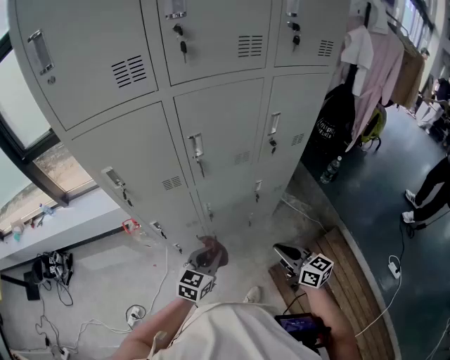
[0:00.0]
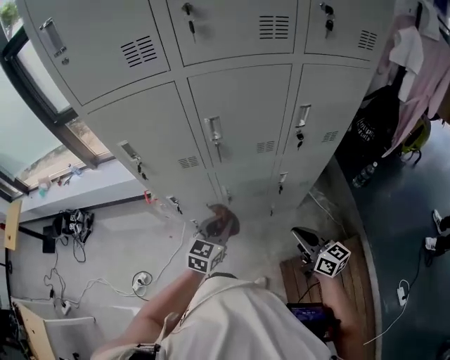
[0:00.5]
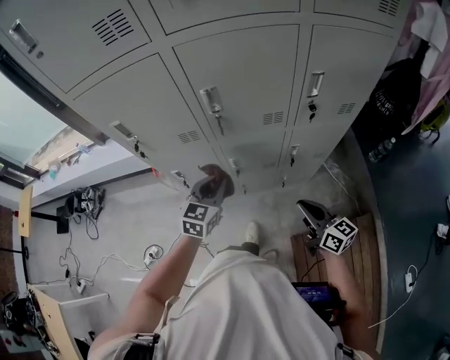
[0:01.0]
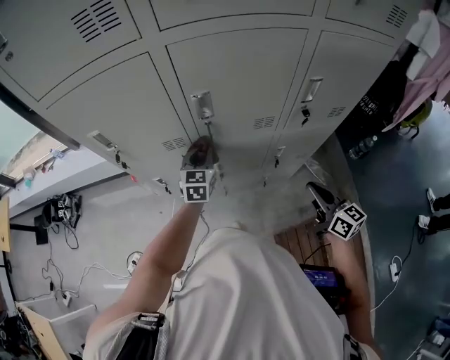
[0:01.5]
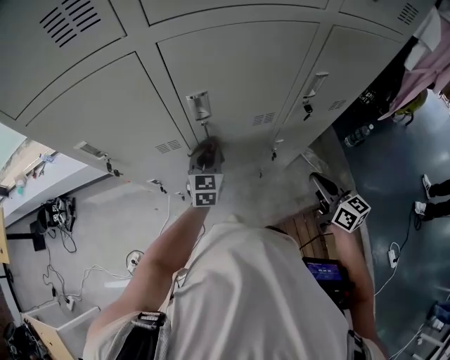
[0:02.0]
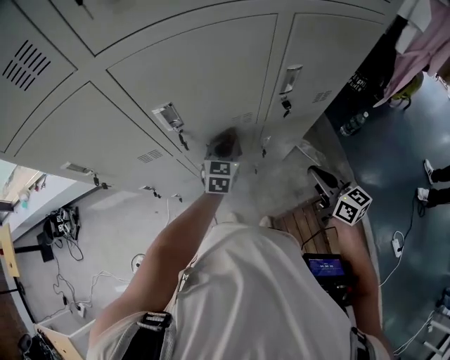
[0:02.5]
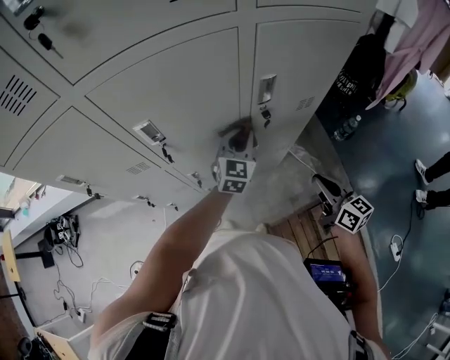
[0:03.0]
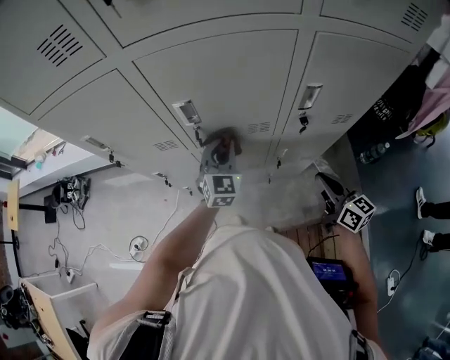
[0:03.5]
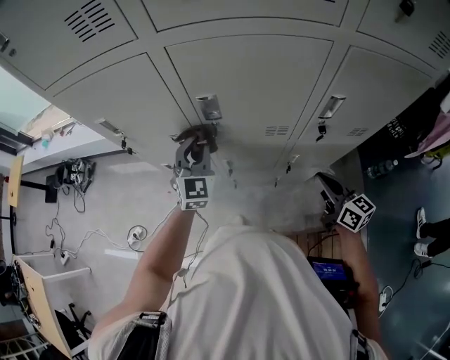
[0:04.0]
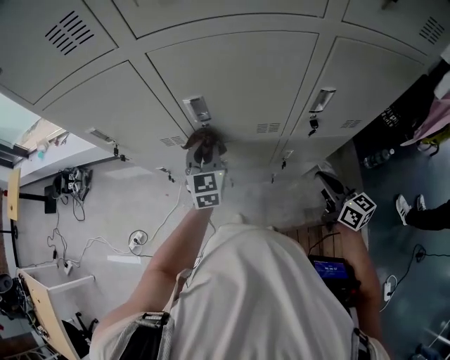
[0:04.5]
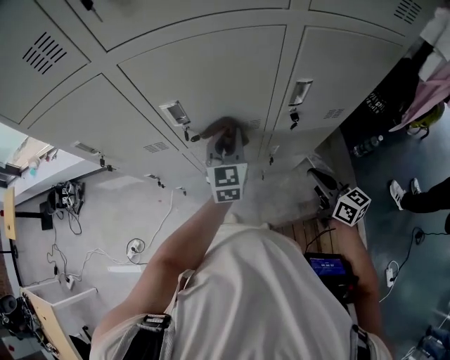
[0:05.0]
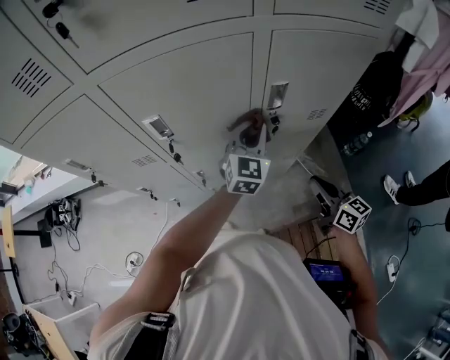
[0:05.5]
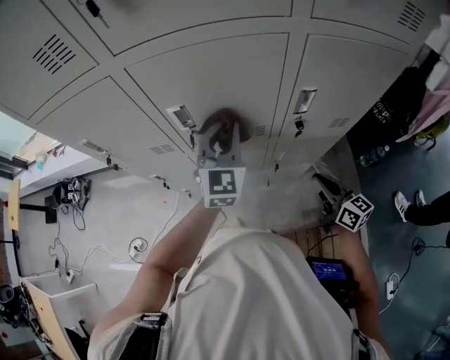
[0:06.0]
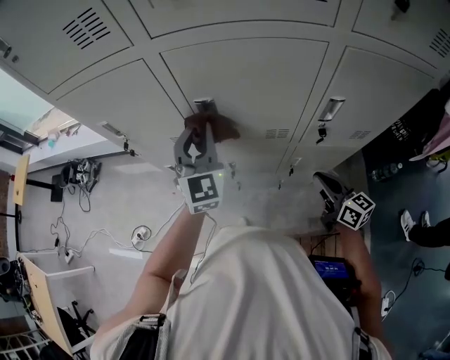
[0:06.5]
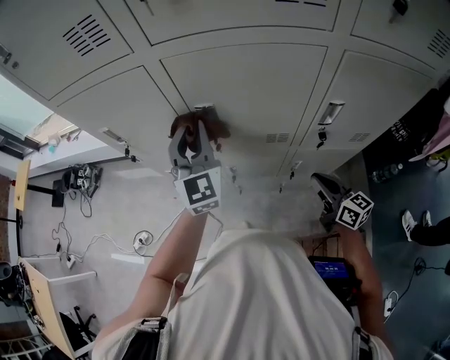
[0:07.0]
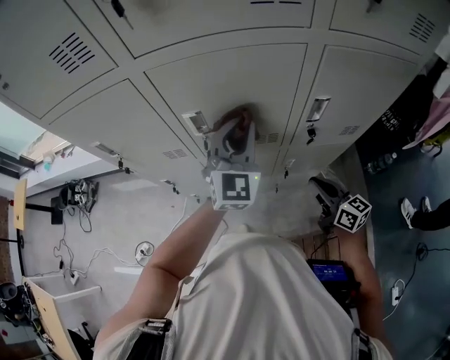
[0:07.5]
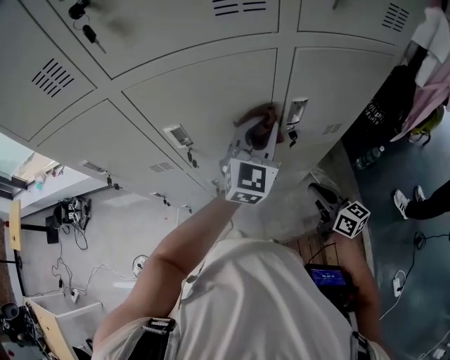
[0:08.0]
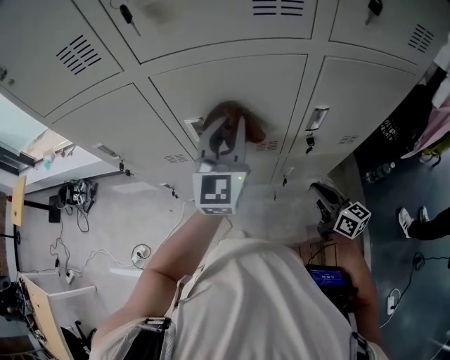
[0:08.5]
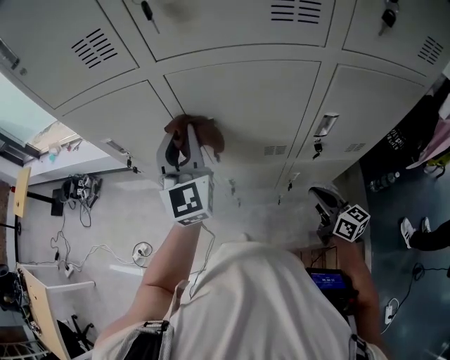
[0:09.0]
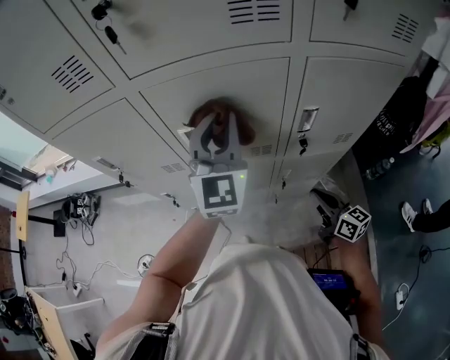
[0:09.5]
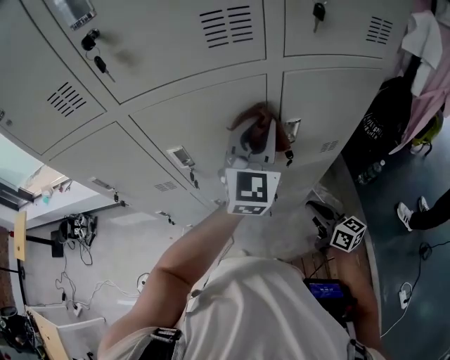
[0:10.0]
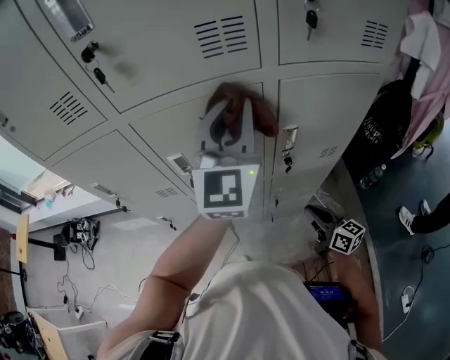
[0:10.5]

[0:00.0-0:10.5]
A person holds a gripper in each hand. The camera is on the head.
0:00.0 to 0:02.0: The left gripper heads forward, covering approximately 25 cm, and changes its angle by roughly 20 degrees. The right gripper goes roughly 20 cm forward and to the right.
0:02.0 to 0:04.0: The left gripper heads upward, covering about 10 cm, and rotates some 30 degrees.
0:04.0 to 0:06.5: The right gripper reaches about 5 cm backward, then returns; the left gripper shifts approximately 10 cm upward, and moves some 30 cm to the right and comes back.
0:06.5 to 0:08.5: The left gripper turns by approximately 20 degrees.
0:08.5 to 0:10.5: The left gripper goes left and right, about 25 cm each way, reversing 2 times.

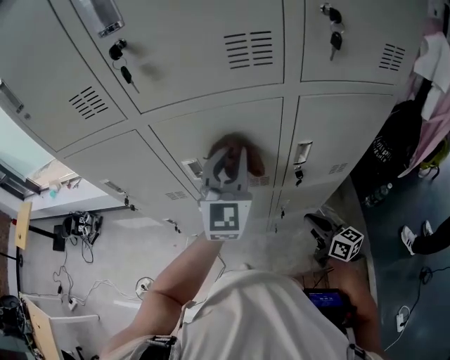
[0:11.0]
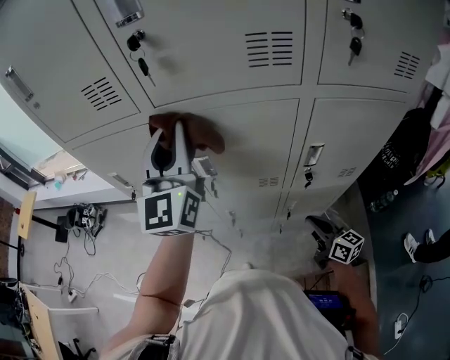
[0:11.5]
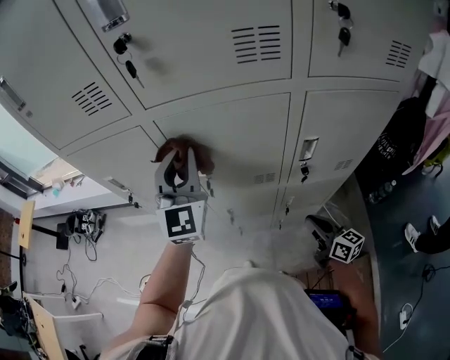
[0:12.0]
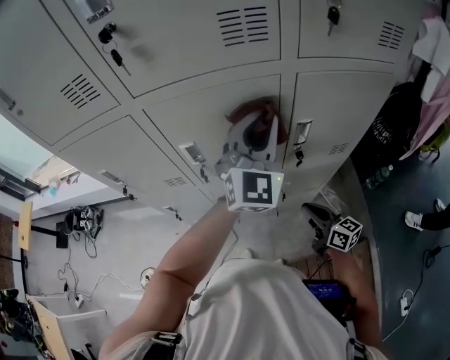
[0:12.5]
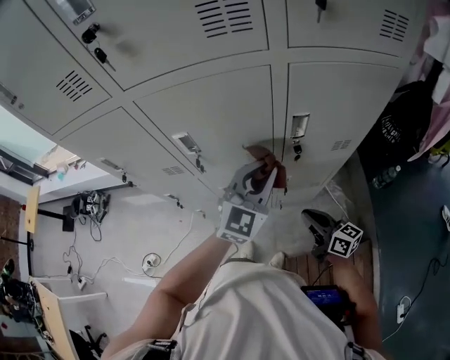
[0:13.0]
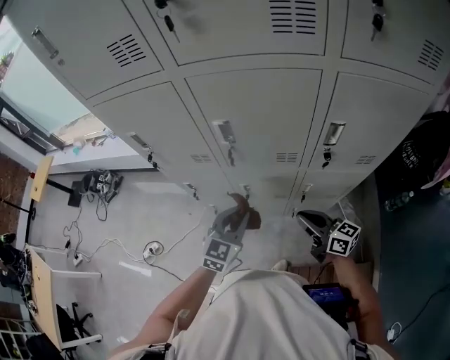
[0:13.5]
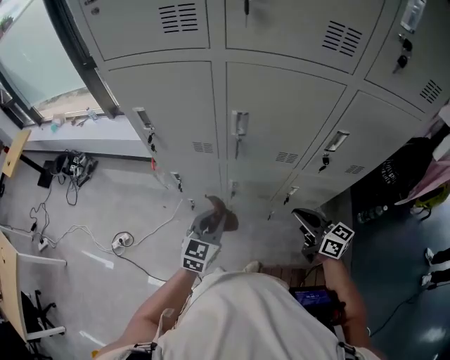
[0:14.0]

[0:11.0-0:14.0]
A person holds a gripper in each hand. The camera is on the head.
0:11.0 to 0:12.5: The left gripper reaches roughly 15 cm to the left, then returns.
0:12.5 to 0:14.0: The right gripper shifts roughly 10 cm to the left, while the left gripper moves downward, to the left and backward, roughly 40 cm, and rotates approximately 40 degrees.

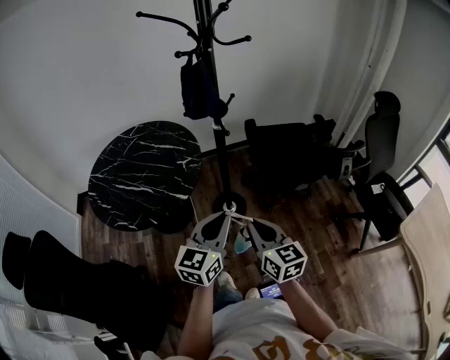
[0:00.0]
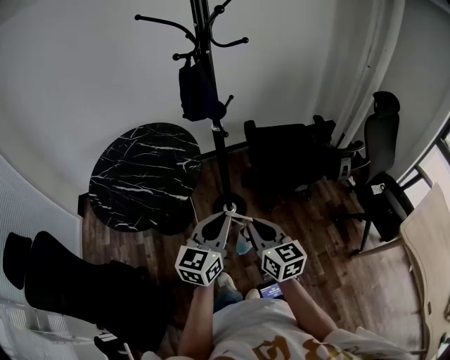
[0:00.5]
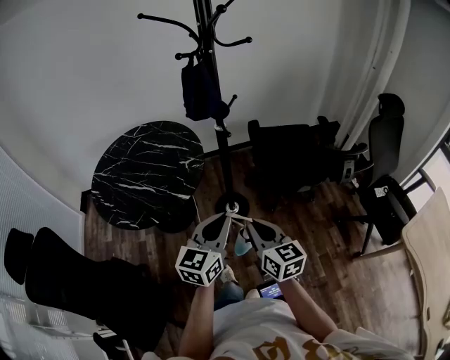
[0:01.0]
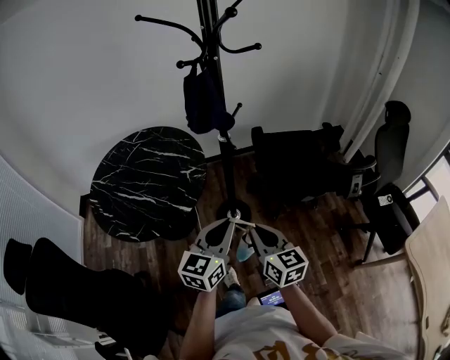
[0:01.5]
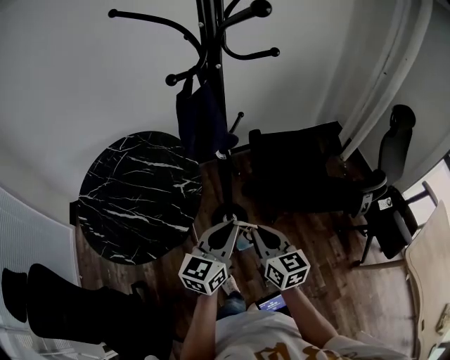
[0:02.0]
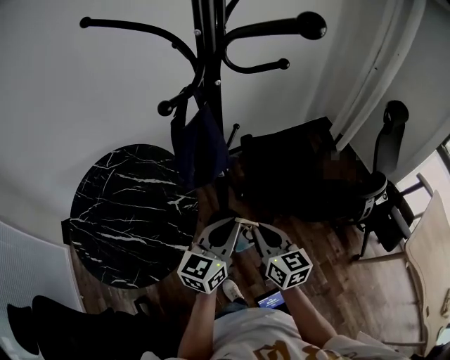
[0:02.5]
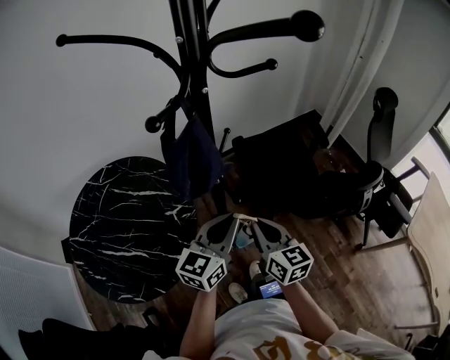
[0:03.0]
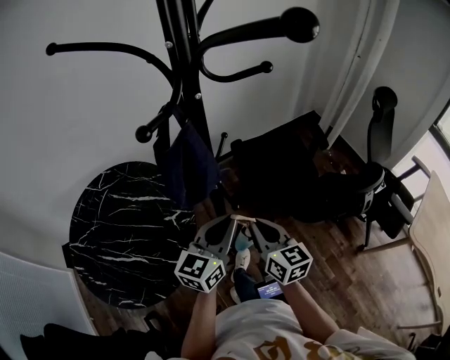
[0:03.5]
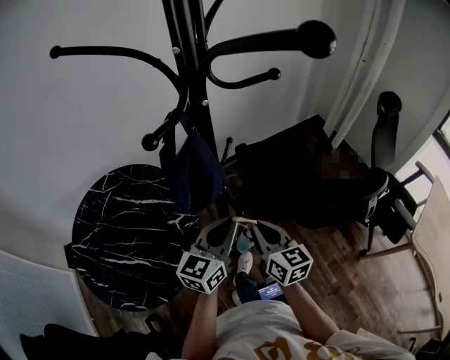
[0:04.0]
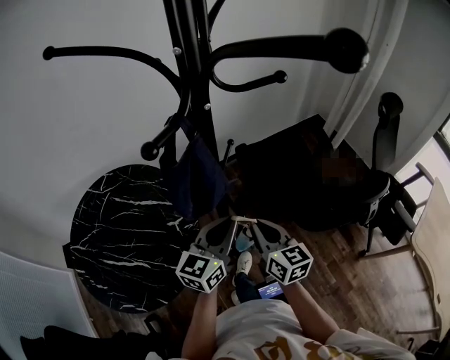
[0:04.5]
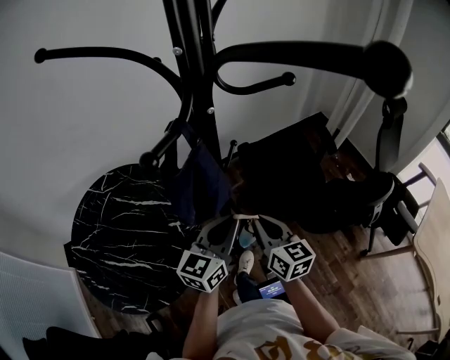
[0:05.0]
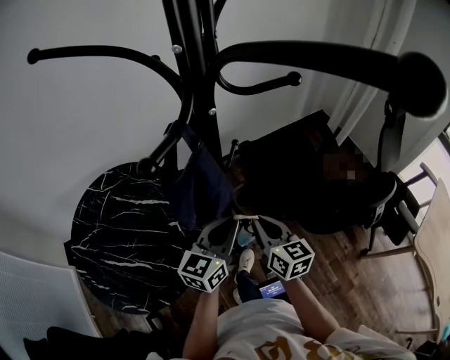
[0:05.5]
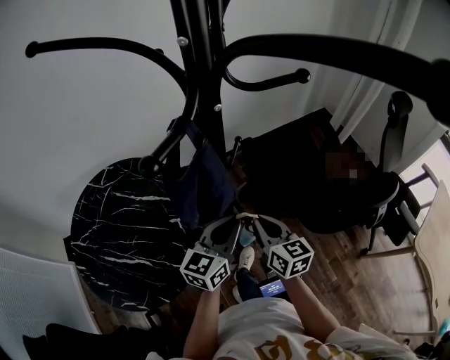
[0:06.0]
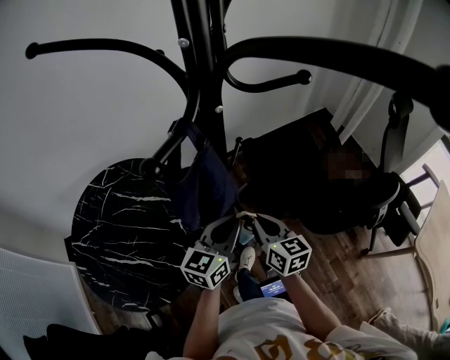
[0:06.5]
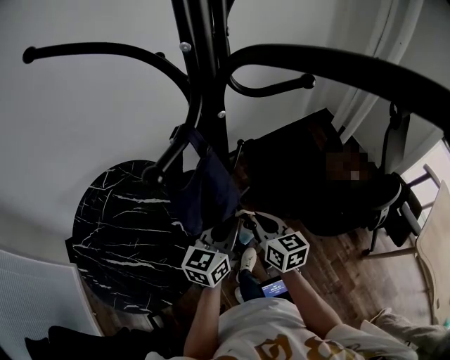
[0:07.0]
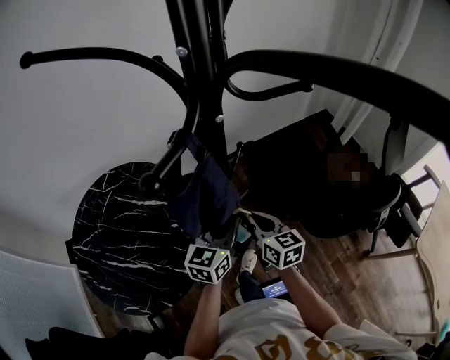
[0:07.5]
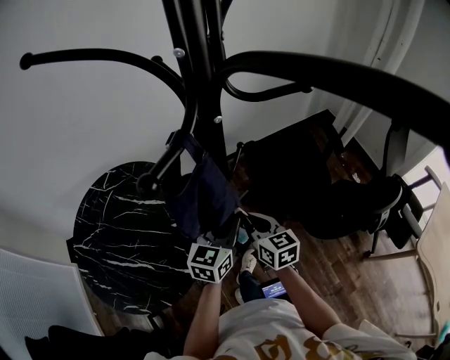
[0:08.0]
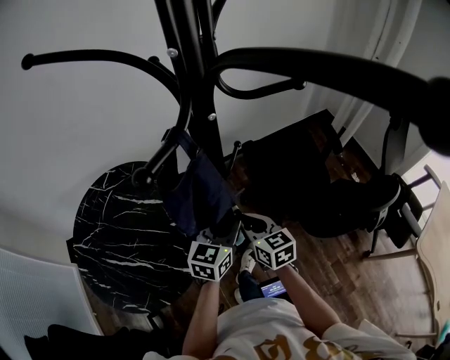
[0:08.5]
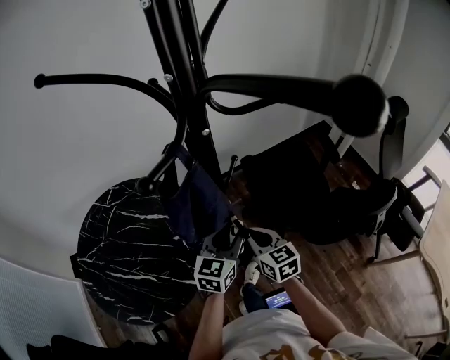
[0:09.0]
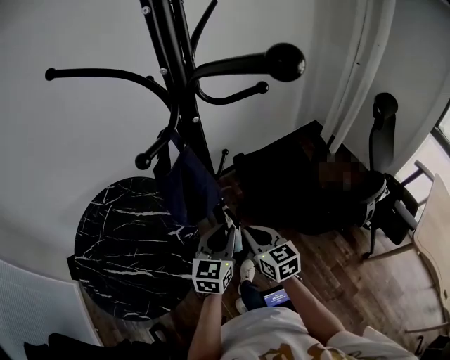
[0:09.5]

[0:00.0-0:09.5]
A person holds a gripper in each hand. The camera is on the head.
0:00.0 to 0:02.0: The grippers both shift forward by approximately 15 cm.
0:02.0 to 0:04.0: The two grippers go approximately 10 cm forward.
0:04.0 to 0:05.5: The right gripper changes place by about 5 cm.
0:05.5 to 0:07.5: The right gripper shifts by approximately 5 cm. Meanwhile the left gripper changes place by approximately 5 cm.
0:07.5 to 0:09.5: The left gripper ends up about 5 cm from where it was. Meanwhile the right gripper travels backward by about 5 cm.

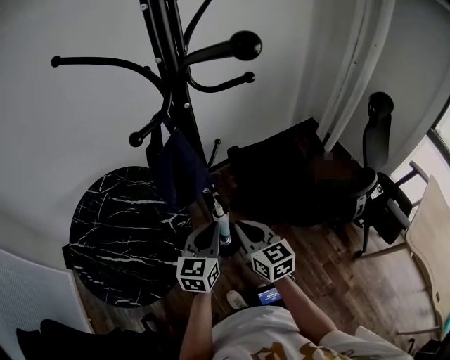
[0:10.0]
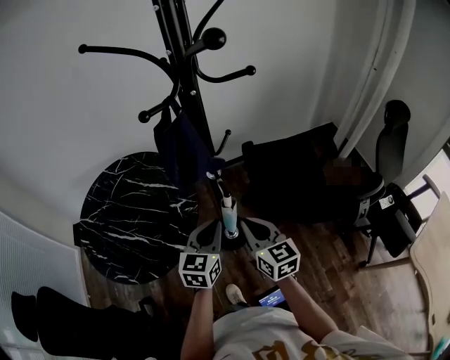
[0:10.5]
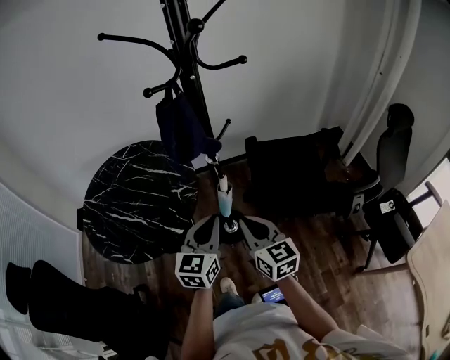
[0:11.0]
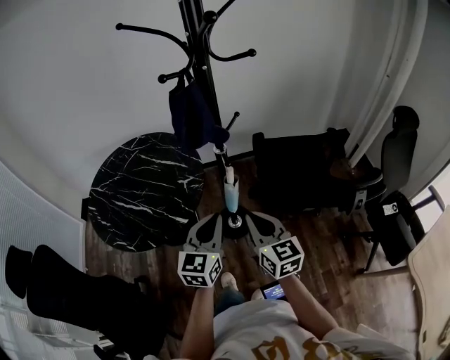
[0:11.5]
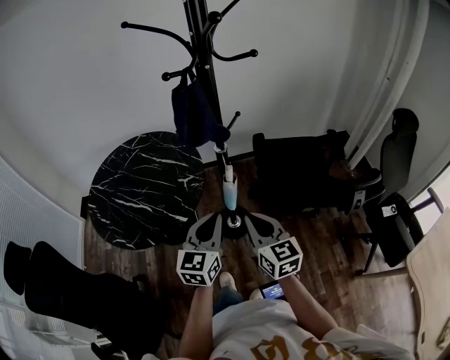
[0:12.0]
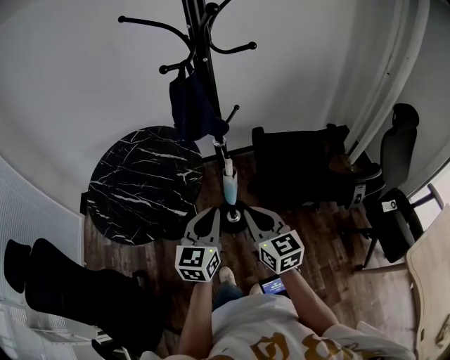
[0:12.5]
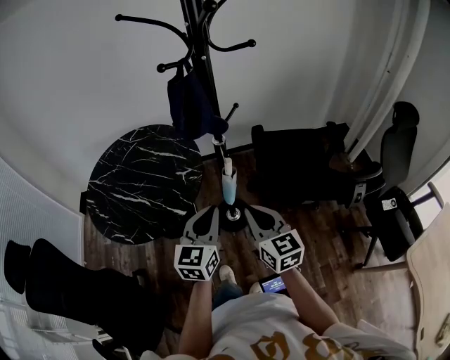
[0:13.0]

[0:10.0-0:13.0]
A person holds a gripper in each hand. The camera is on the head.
0:10.0 to 0:11.5: The grippers both shift backward by roughly 15 cm.
0:11.5 to 0:13.0: The grippers make only small movements.
